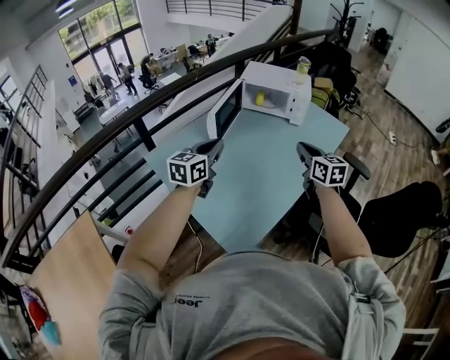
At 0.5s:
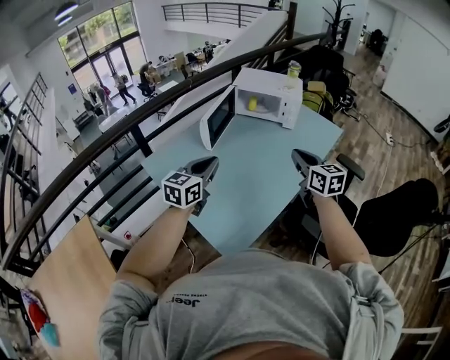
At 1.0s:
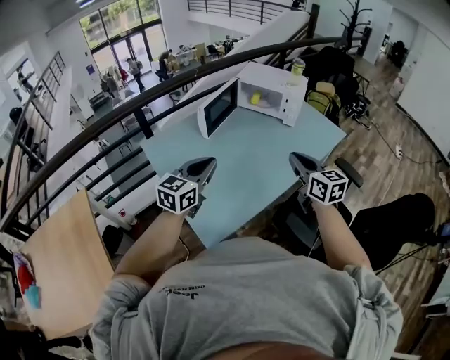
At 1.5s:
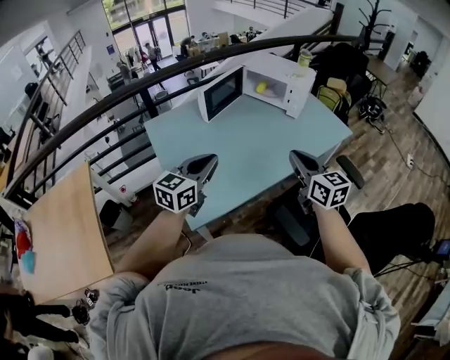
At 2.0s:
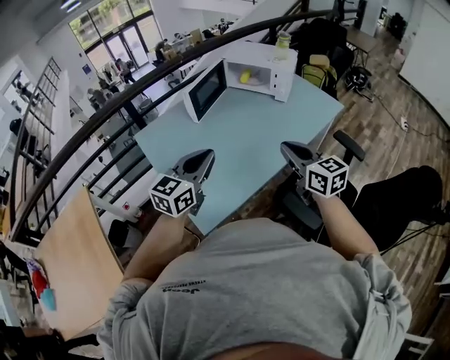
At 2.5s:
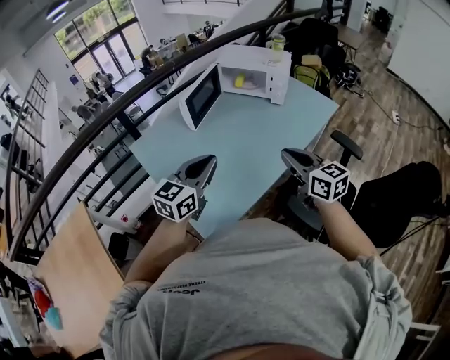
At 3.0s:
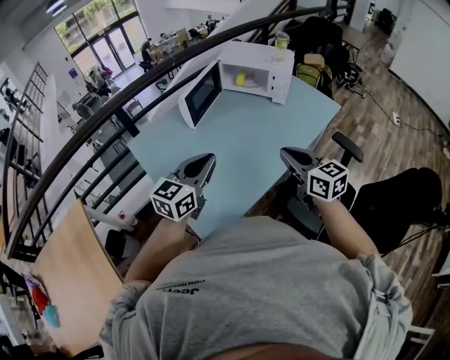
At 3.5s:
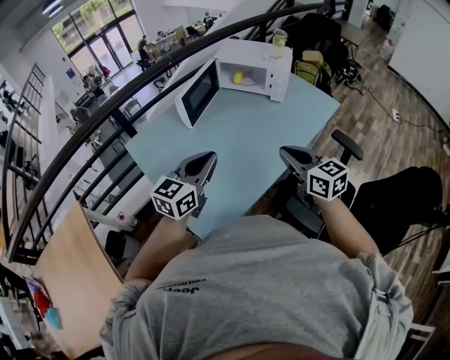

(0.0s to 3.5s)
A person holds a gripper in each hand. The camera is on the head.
0.0s - 2.0s: The two grippers go roughly 20 cm backward and to the right. The right gripper rotates roughly 20 degrees.
2.0s - 3.5s: The left gripper is displaced forward by roughly 5 cm.

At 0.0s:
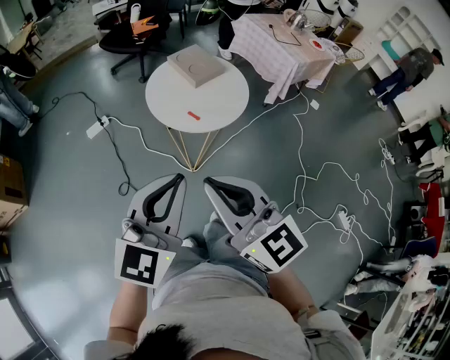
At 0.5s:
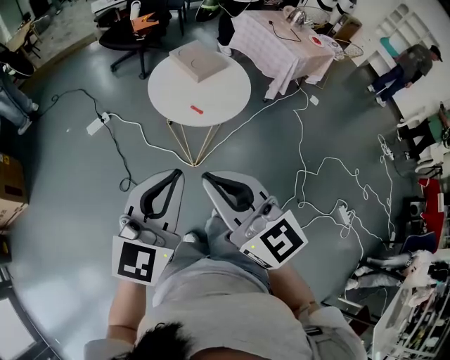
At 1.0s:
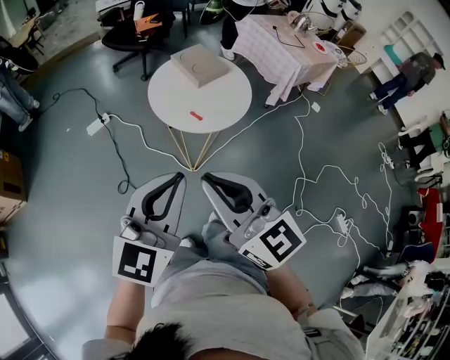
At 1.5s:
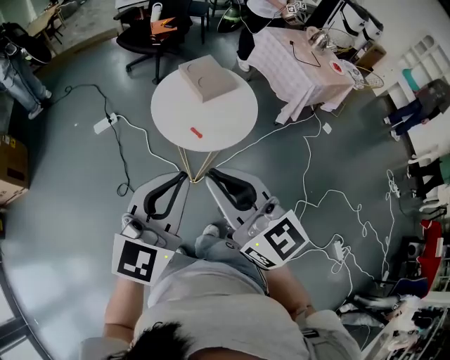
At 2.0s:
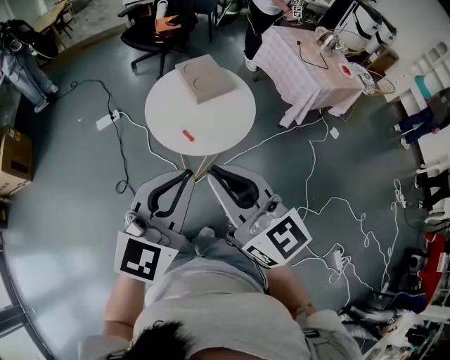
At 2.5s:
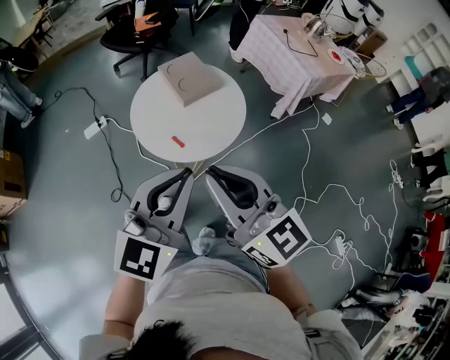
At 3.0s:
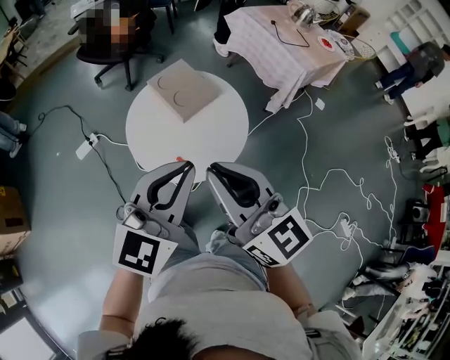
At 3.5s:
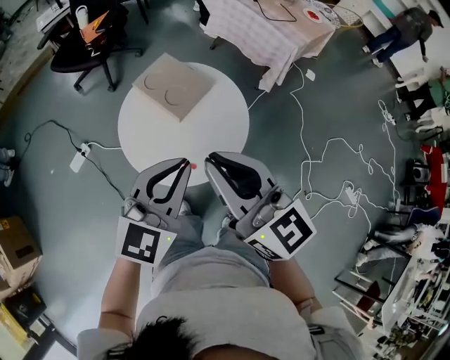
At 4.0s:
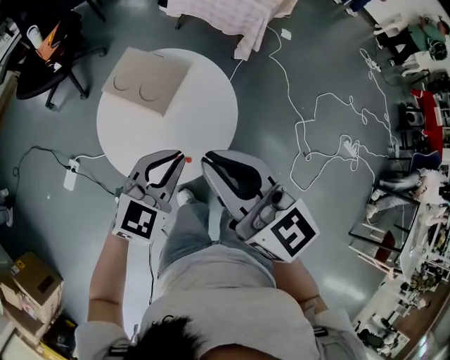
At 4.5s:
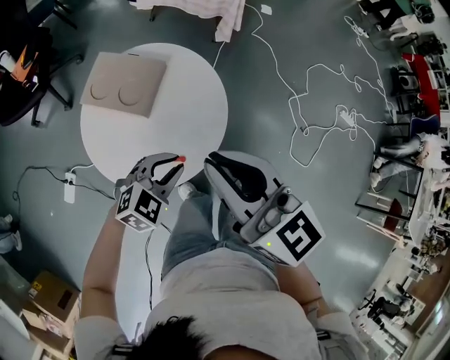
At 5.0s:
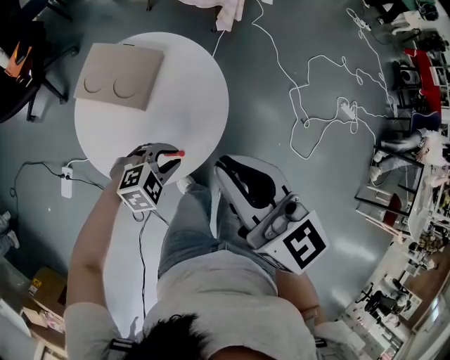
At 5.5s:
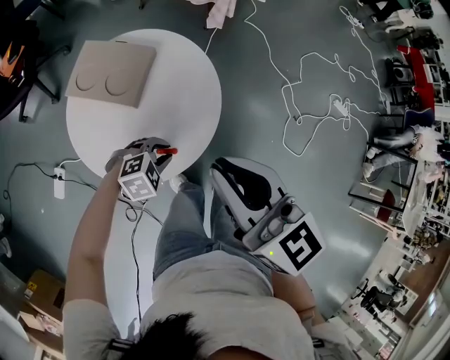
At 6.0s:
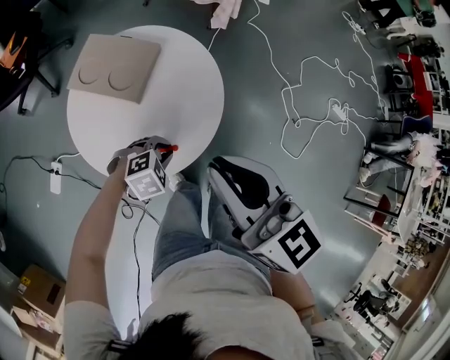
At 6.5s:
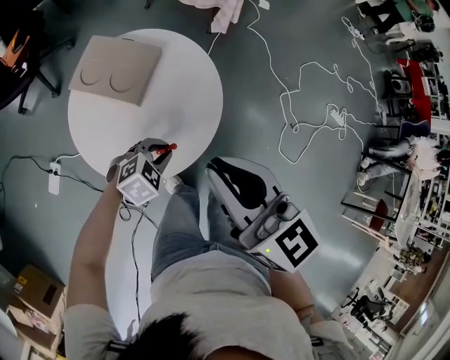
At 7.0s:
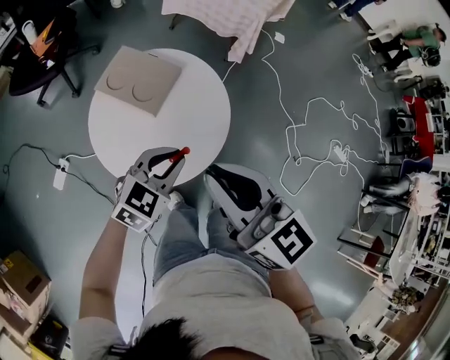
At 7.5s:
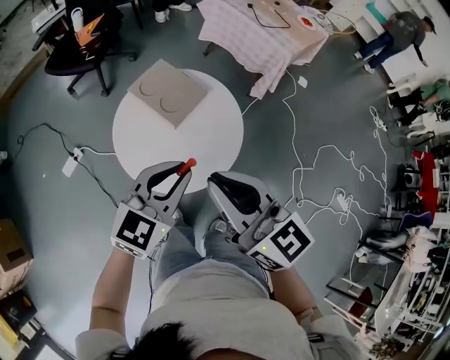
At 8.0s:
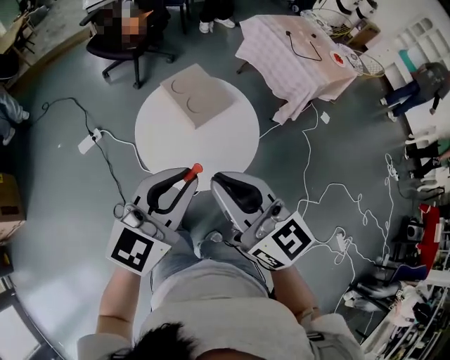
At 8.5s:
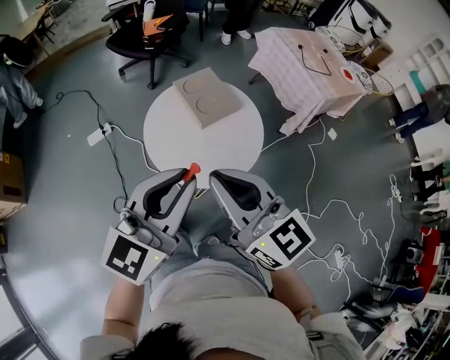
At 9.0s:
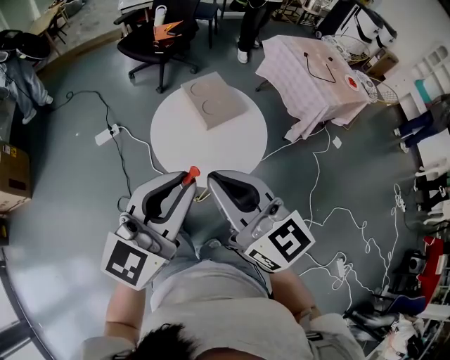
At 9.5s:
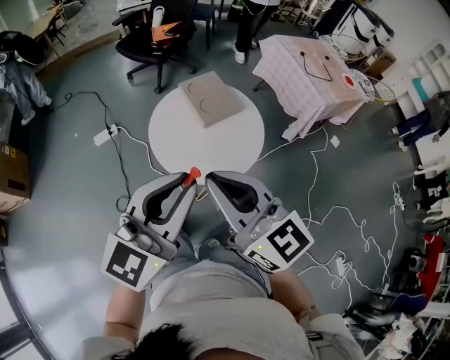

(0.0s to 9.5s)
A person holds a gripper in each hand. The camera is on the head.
0.0s - 2.0s: The two grippers go roughly 15 cm to the right and forward.
2.0s - 4.0s: The right gripper changes place by about 20 cm, and turns by about 40 degrees; the left gripper shifts by roughly 30 cm, and turns by roughly 50 degrees.
4.0s - 5.5s: The left gripper goes approximately 20 cm downward, and angles its fingers downward, by some 30 degrees. The right gripper shifts by approximately 5 cm.
5.5s - 7.5s: The left gripper heads upward, covering some 30 cm, and angles its fingers upward, by some 40 degrees, while the right gripper moves approximately 5 cm, and changes its angle by roughly 30 degrees.
7.5s - 9.5s: The right gripper goes roughly 10 cm backward, and rotates some 20 degrees; the left gripper goes approximately 20 cm upward and backward, and turns by approximately 30 degrees.

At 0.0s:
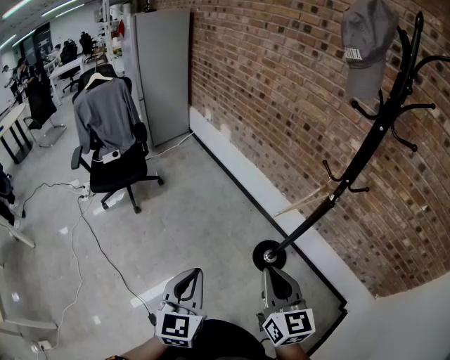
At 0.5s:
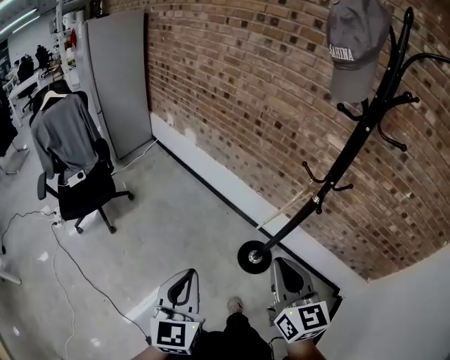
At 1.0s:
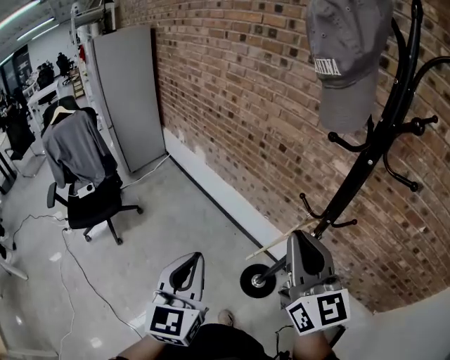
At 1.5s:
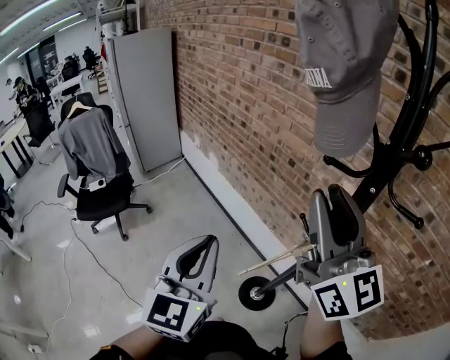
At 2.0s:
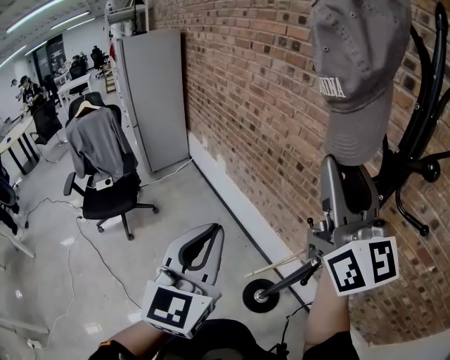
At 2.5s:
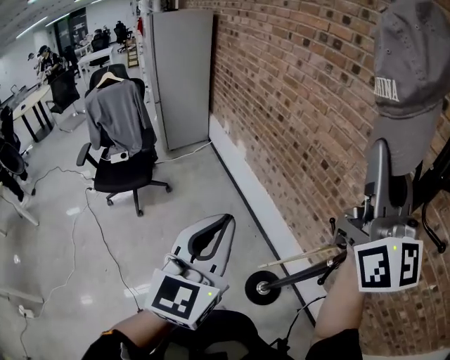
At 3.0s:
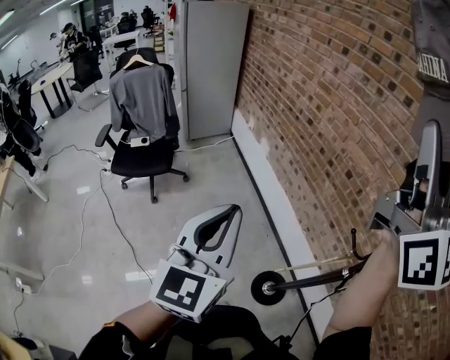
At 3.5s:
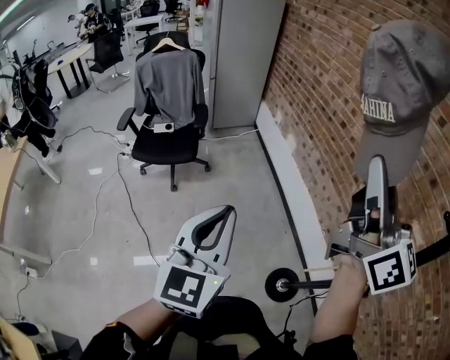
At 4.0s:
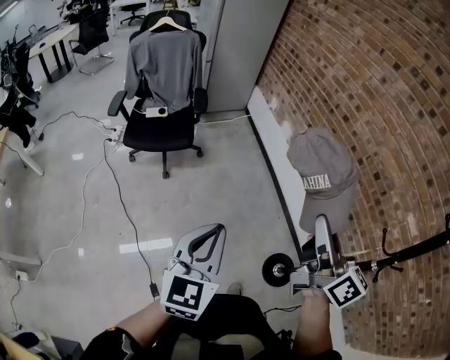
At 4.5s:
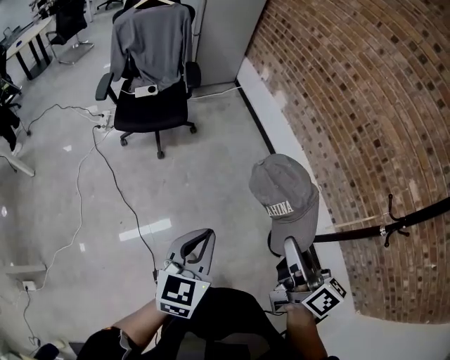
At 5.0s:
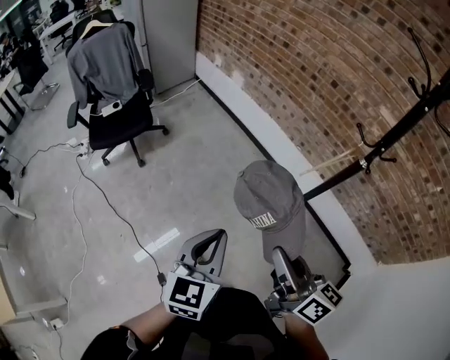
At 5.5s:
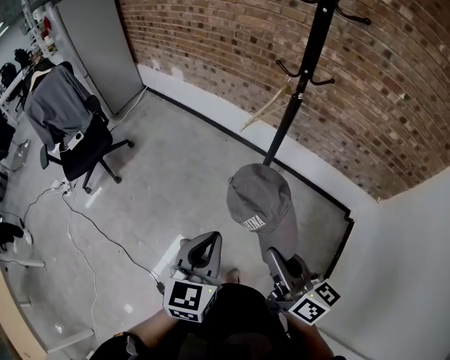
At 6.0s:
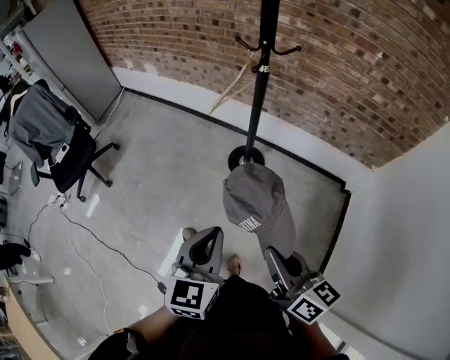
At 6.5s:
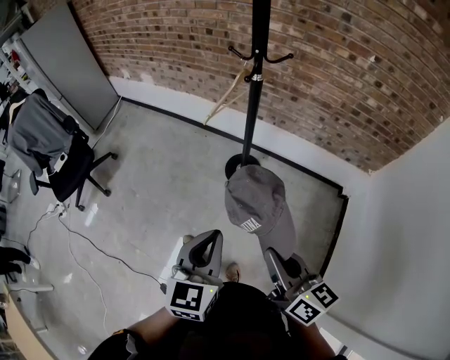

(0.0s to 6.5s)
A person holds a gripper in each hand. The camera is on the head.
0.0s - 2.0s: The two grippers go some 40 cm forward, upward and to the right. The right gripper tips its fingers upward by some 30 degrees, and opens its fingers.
2.0s - 4.5s: The pair of grippers is taken to the left, about 50 cm. Both grippers move downward, approximately 30 cm. The right gripper twists some 50 degrees clockwise, seen from behind, and closes its fingers. Meanwhile the left gripper swivels some 30 degrees.
4.5s - 6.5s: The pair of grippers is taken some 50 cm. The left gripper turns by roughly 40 degrees, while the right gripper swivels roughly 30 degrees.

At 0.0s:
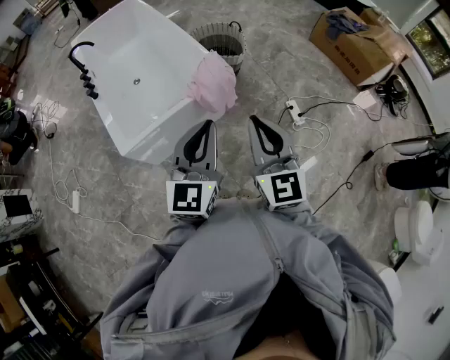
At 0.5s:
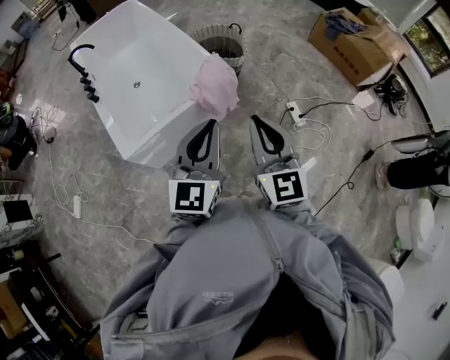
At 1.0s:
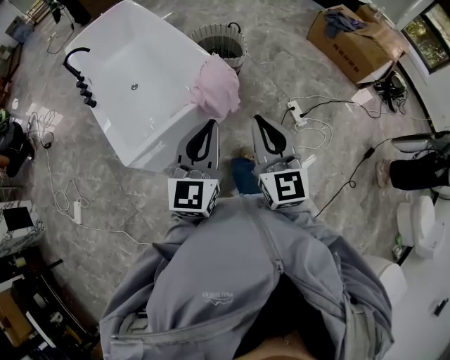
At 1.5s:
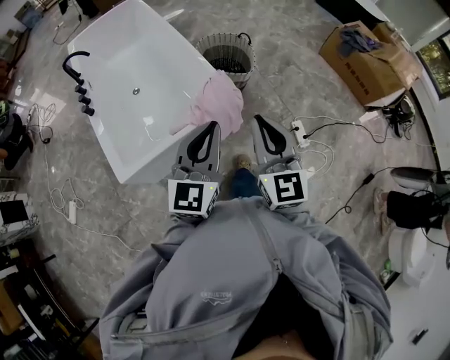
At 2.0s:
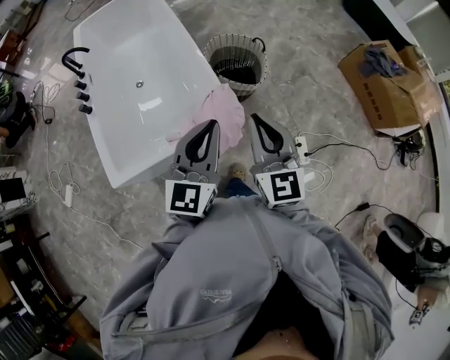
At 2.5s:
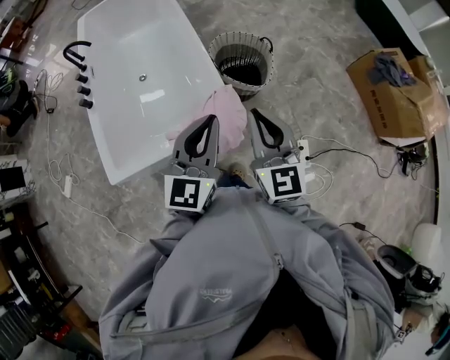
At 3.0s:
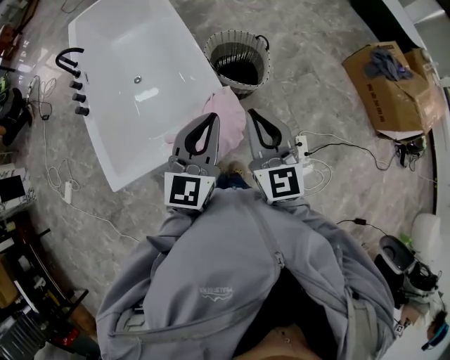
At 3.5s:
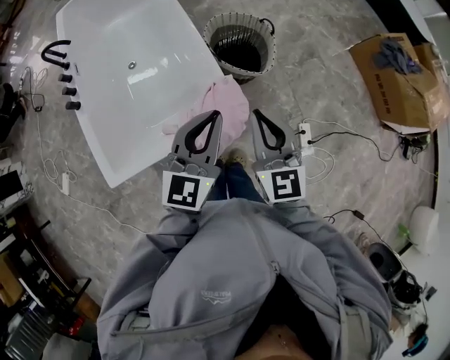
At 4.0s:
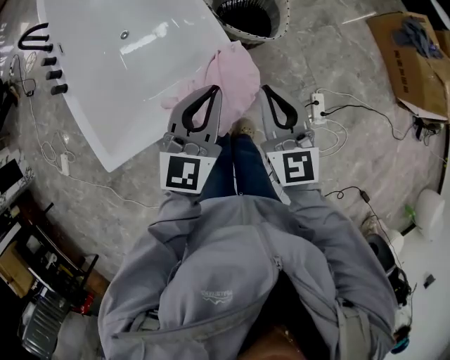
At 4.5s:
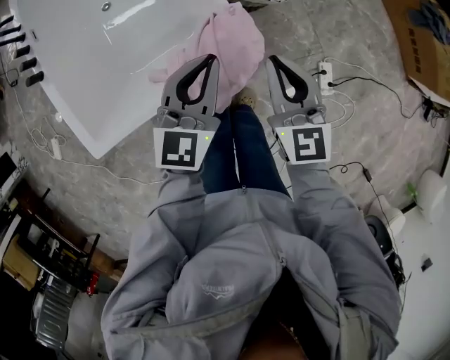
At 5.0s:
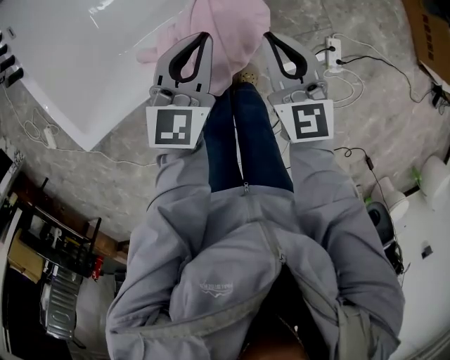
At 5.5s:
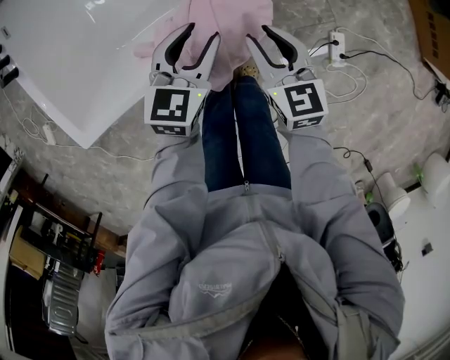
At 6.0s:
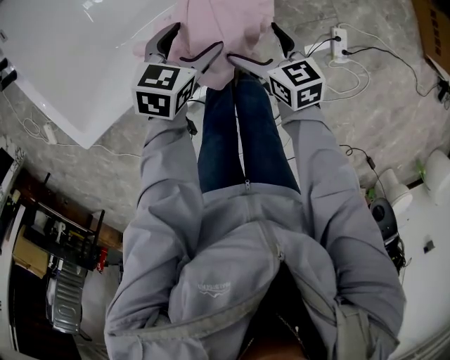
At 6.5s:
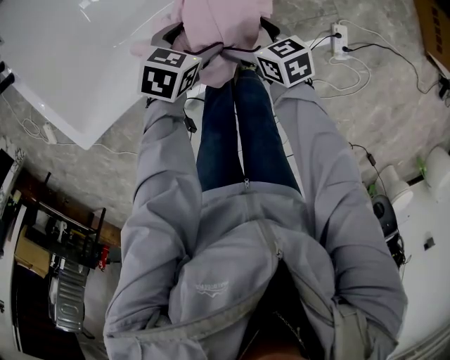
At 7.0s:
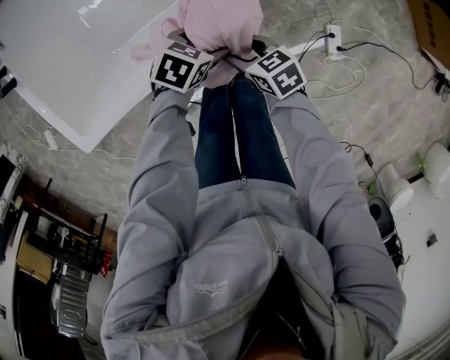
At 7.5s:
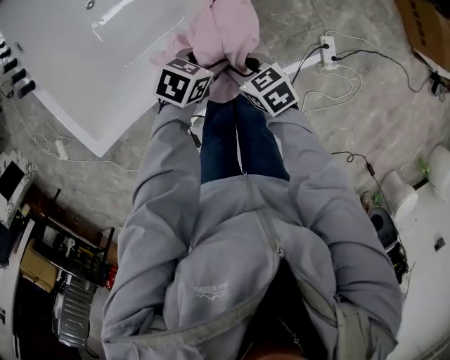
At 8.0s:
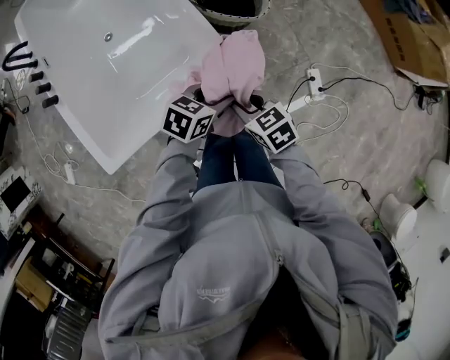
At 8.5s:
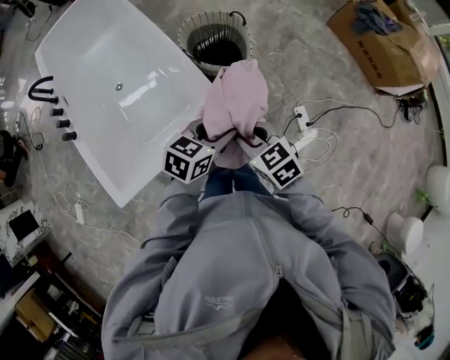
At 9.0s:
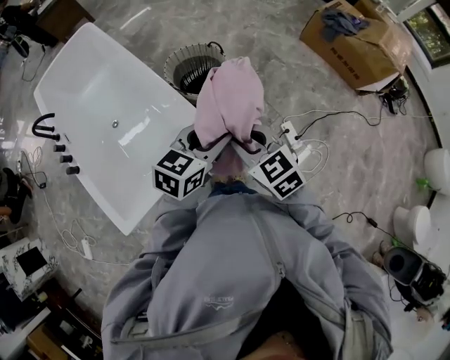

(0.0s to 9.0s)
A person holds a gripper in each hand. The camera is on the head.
0.0s - 2.0s: Both grippers move forward, about 20 cm.
2.0s - 4.5s: The right gripper heads downward, covering roughly 15 cm. The left gripper travels downward and forward by about 20 cm.
4.5s - 7.0s: Both grippers travel together downward, approximately 25 cm. The left gripper tips its fingers downward by roughly 40 degrees, and opens its fingers. Meanwhile the right gripper changes its angle by about 50 degrees, and opens.
7.0s - 9.0s: Both grippers travel together upward, approximately 35 cm. The left gripper tilts its fingers approximately 30 degrees upward, and closes, while the right gripper turns by roughly 40 degrees.
